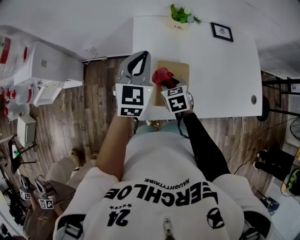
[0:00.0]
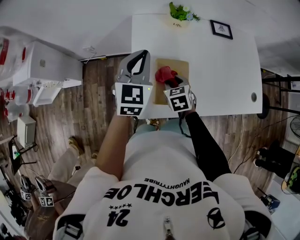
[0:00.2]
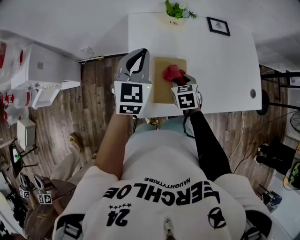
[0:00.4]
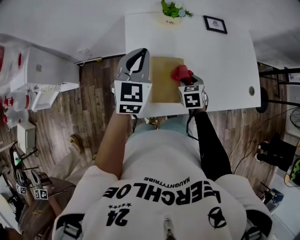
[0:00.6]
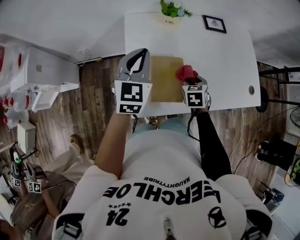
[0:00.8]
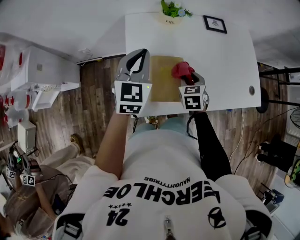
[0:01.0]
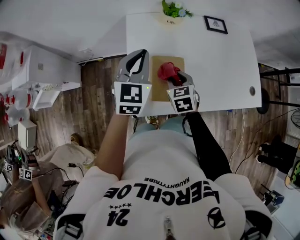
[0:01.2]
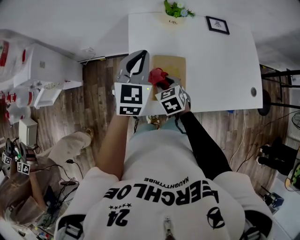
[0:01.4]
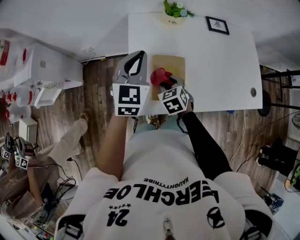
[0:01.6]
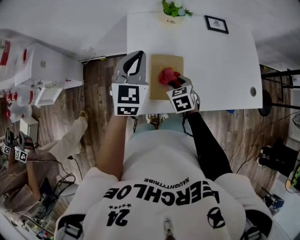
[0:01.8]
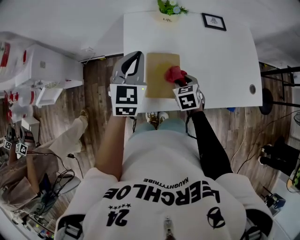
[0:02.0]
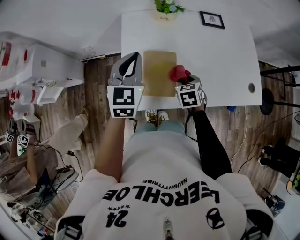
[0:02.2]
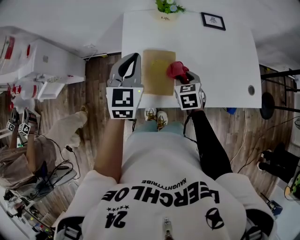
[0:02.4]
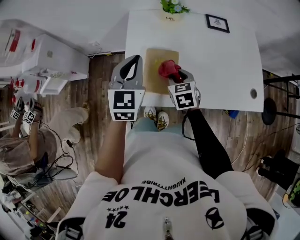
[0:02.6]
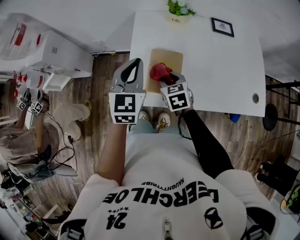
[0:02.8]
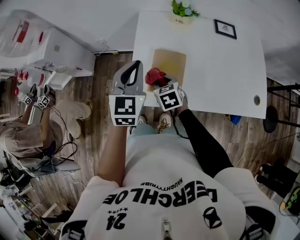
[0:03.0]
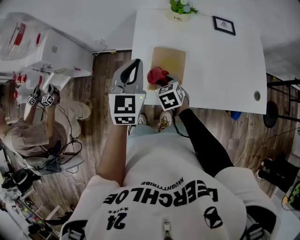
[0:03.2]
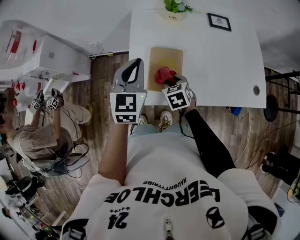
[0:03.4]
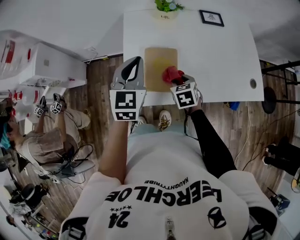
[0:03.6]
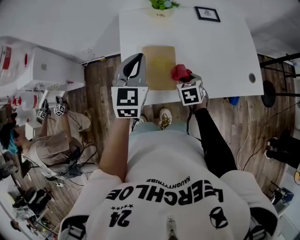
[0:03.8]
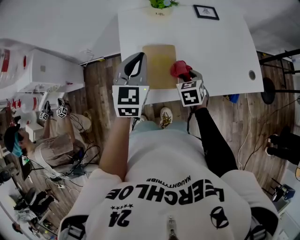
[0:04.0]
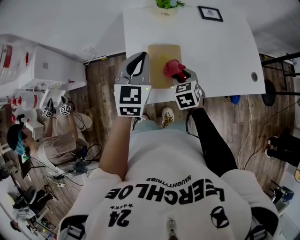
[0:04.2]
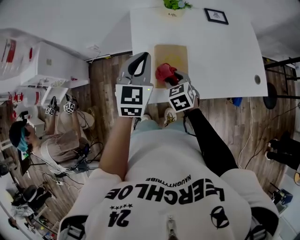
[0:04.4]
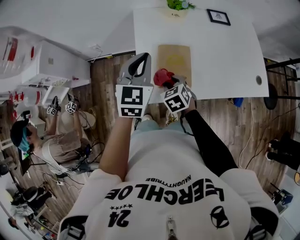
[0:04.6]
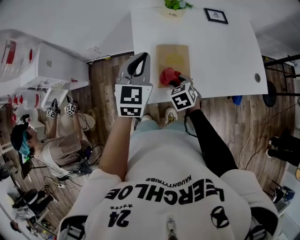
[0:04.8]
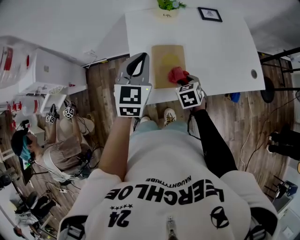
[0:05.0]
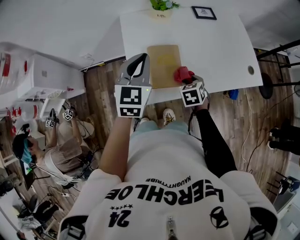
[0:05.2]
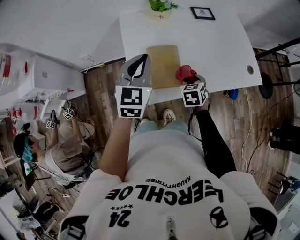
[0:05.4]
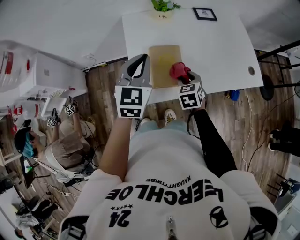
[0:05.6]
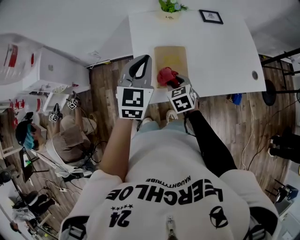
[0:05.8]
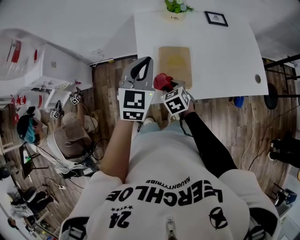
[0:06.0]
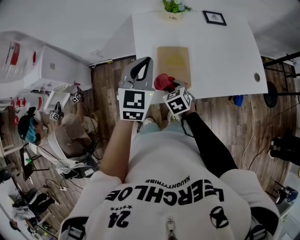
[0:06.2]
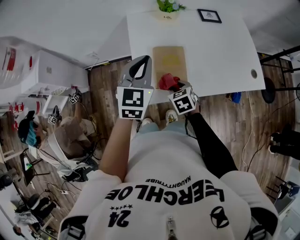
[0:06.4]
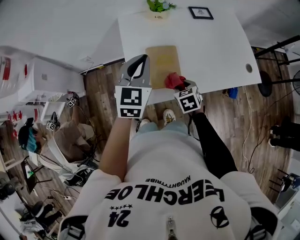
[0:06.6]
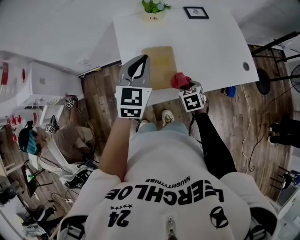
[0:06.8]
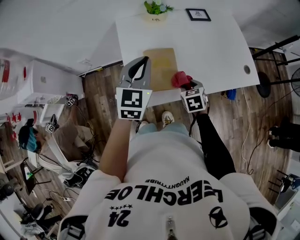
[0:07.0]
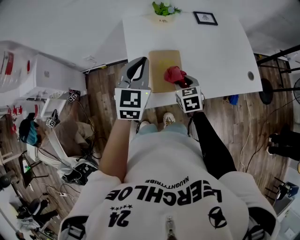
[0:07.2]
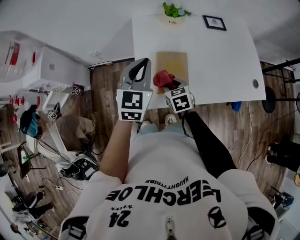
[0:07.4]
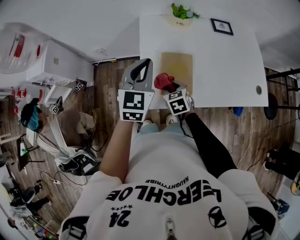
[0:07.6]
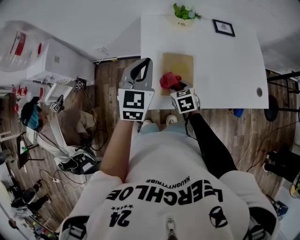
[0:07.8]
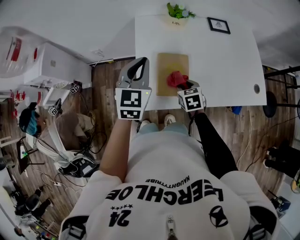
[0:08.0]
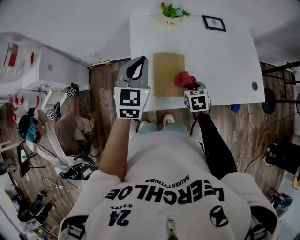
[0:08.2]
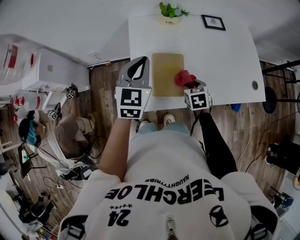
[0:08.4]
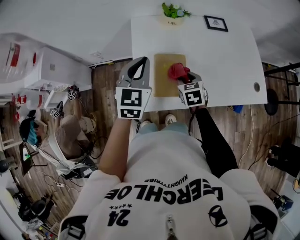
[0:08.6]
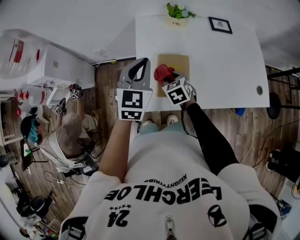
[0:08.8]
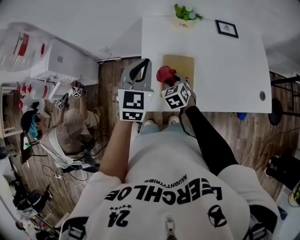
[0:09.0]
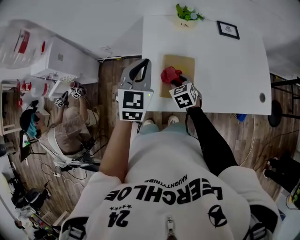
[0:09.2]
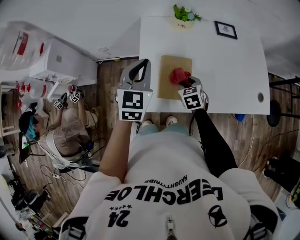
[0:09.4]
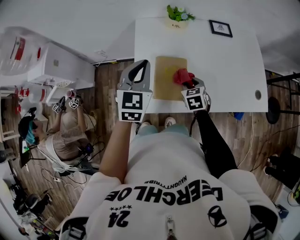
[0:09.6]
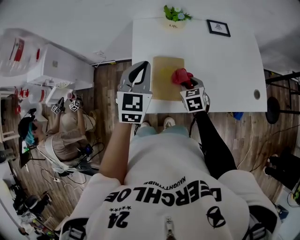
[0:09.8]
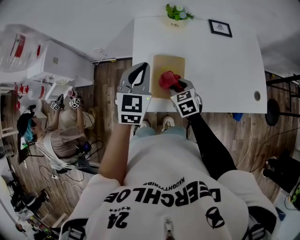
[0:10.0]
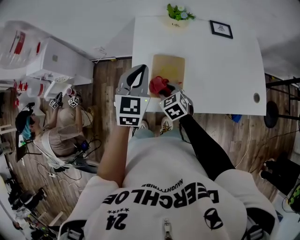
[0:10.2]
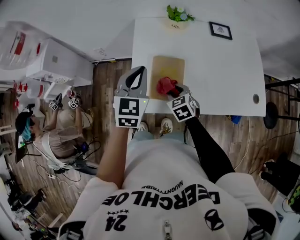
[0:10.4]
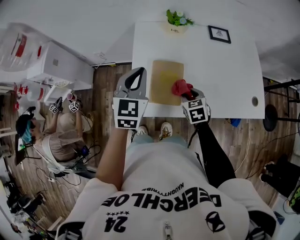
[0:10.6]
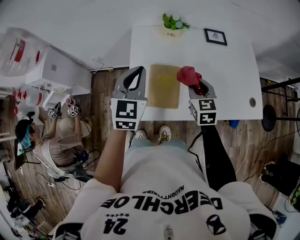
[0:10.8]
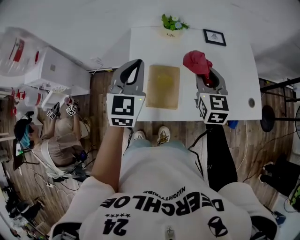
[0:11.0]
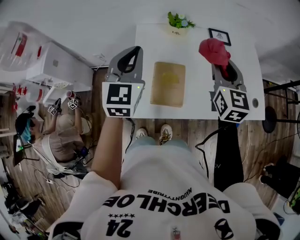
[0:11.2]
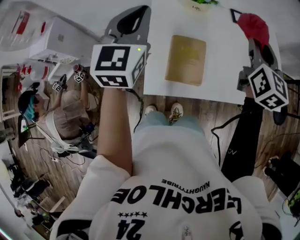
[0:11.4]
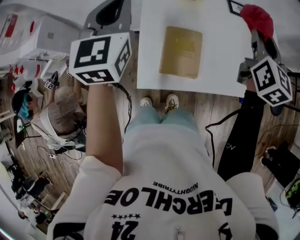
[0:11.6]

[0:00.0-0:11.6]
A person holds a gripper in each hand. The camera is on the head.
0:00.0 to 0:01.4: The right gripper moves approximately 15 cm to the right and comes back.
0:01.4 to 0:02.8: The left gripper shifts approximately 10 cm backward. Meanwhile the right gripper reaches roughly 15 cm to the right, then returns.
0:02.8 to 0:04.4: The right gripper moves left and right over about 15 cm, changing direction 2 times.
0:04.4 to 0:05.8: The right gripper travels to the right and back again, about 15 cm each way.
0:05.8 to 0:07.2: The right gripper swings left and right, approximately 15 cm each way, with 2 reversals.
0:07.2 to 0:08.8: The right gripper swings left and right, about 15 cm each way, with 2 reversals.
0:08.8 to 0:10.2: The right gripper shifts approximately 5 cm backward, and travels to the right and back again, approximately 10 cm each way.
0:10.2 to 0:11.6: The right gripper goes approximately 30 cm upward and to the right, and tilts its fingers roughly 40 degrees upward; the left gripper goes approximately 15 cm to the left and upward.

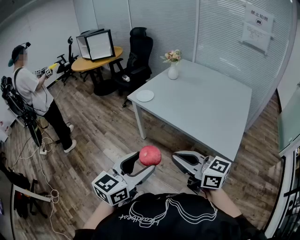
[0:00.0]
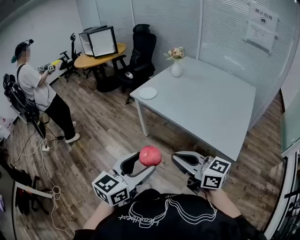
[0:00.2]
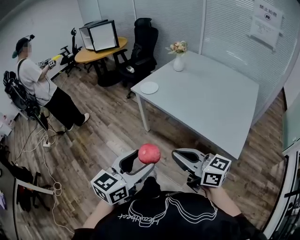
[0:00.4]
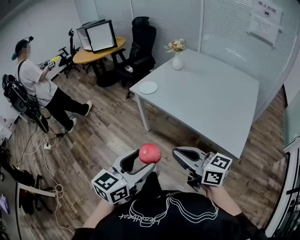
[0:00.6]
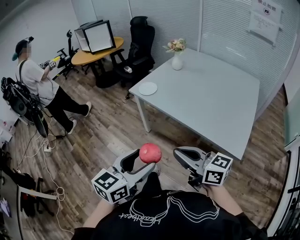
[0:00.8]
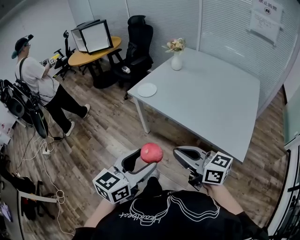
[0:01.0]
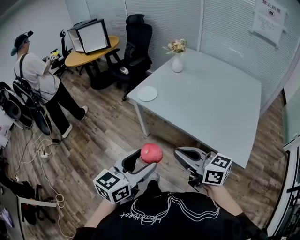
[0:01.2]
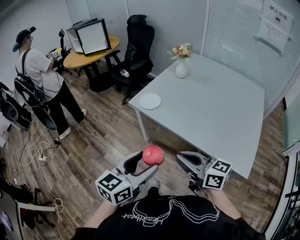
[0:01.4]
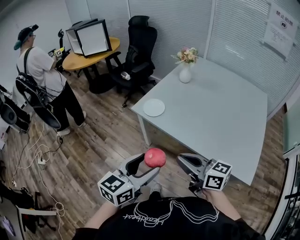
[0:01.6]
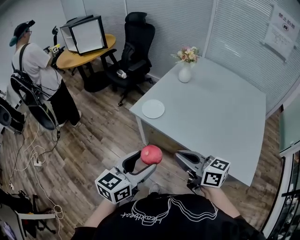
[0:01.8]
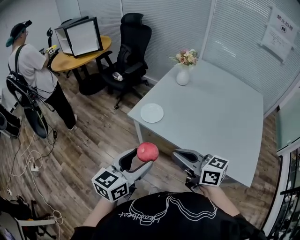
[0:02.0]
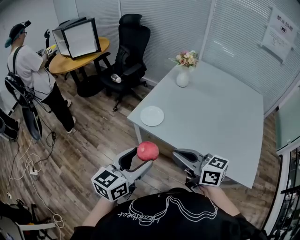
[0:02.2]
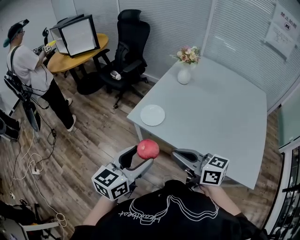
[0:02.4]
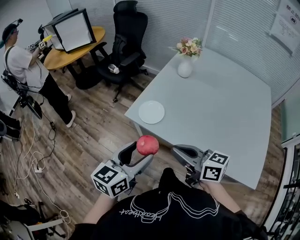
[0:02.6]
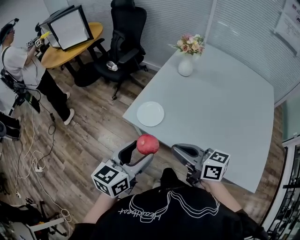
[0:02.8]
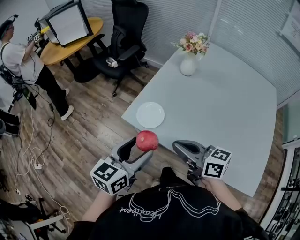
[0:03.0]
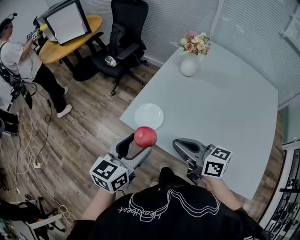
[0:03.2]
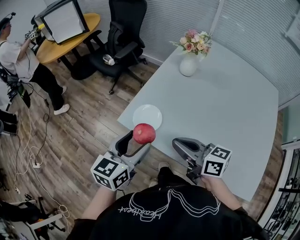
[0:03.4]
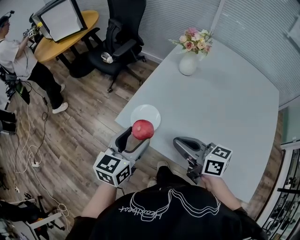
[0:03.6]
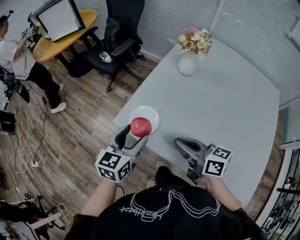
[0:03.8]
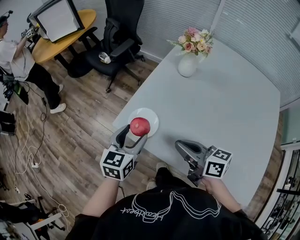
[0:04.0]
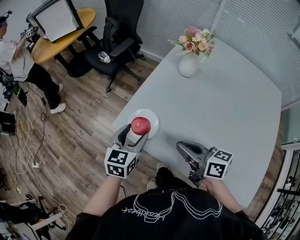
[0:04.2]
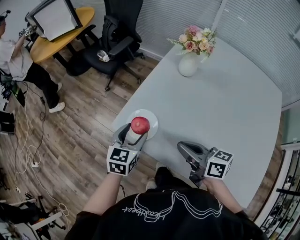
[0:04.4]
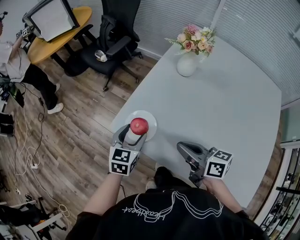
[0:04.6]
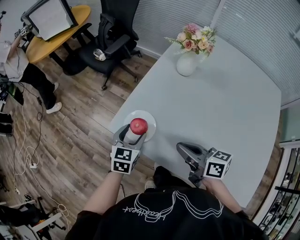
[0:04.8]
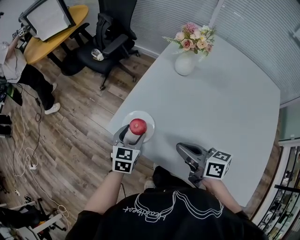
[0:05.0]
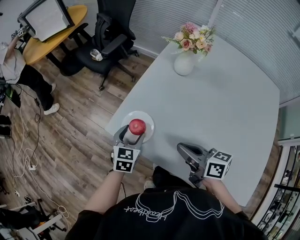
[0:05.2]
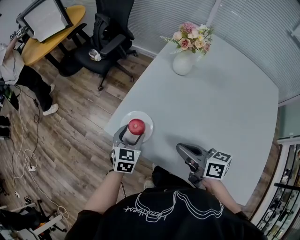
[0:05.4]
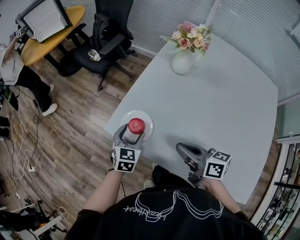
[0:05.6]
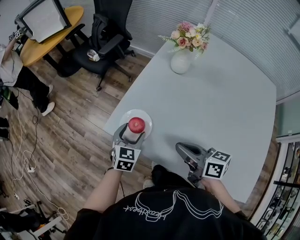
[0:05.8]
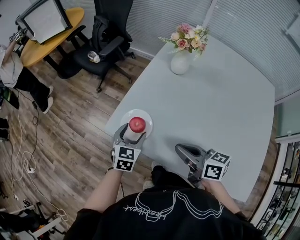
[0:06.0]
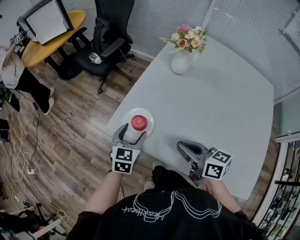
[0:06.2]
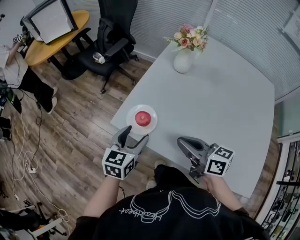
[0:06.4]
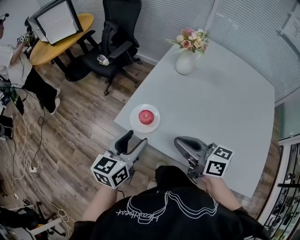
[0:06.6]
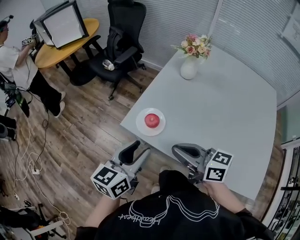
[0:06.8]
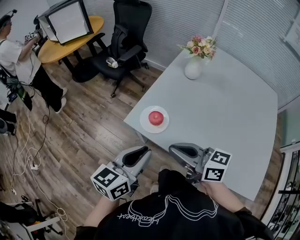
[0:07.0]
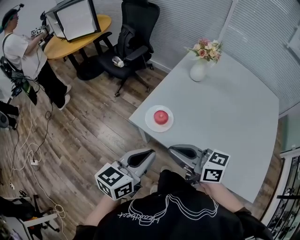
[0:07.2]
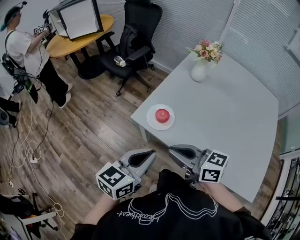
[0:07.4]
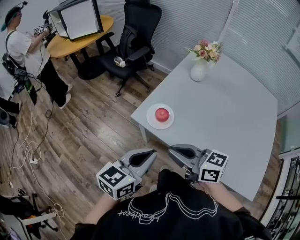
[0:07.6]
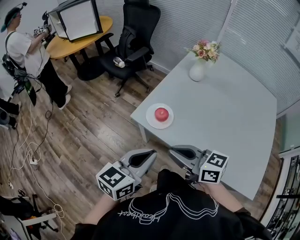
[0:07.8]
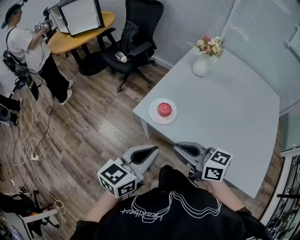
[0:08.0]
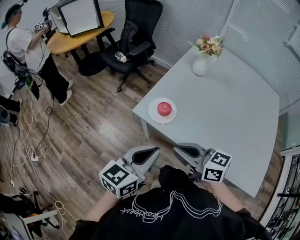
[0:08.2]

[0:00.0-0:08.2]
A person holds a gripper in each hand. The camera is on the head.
0:00.0 to 0:01.6: Both grippers travel together forward, about 25 cm.
0:01.6 to 0:03.2: The two grippers go approximately 30 cm forward.
0:03.2 to 0:05.0: The left gripper travels downward and forward by some 25 cm, and changes its angle by approximately 20 degrees, while the right gripper is displaced downward, to the right and forward by some 10 cm.
0:05.0 to 0:06.6: The left gripper goes some 15 cm upward and backward, and turns by some 30 degrees; the right gripper travels upward and to the left by about 10 cm.
0:06.6 to 0:08.2: The right gripper heads to the left and backward, covering roughly 10 cm. The left gripper travels backward by roughly 10 cm, and closes.

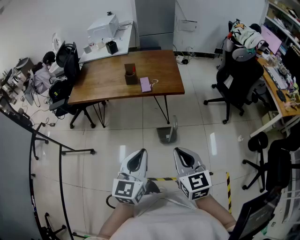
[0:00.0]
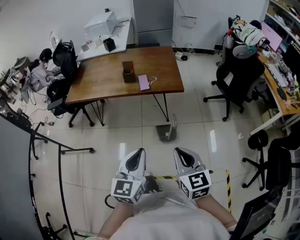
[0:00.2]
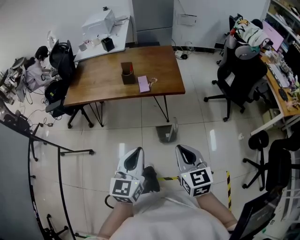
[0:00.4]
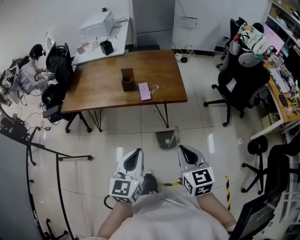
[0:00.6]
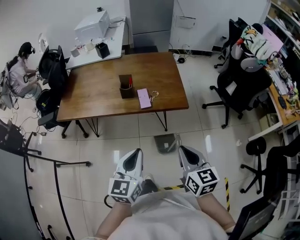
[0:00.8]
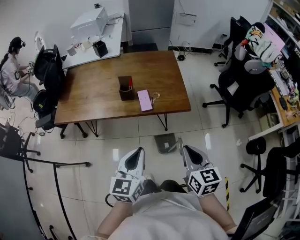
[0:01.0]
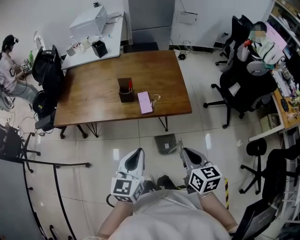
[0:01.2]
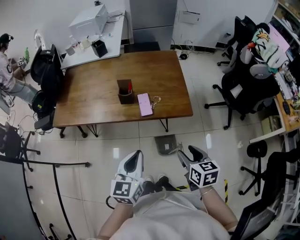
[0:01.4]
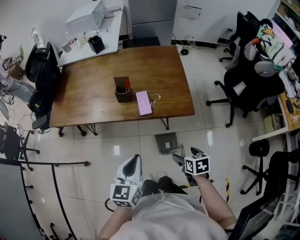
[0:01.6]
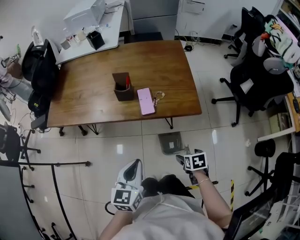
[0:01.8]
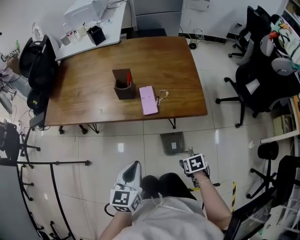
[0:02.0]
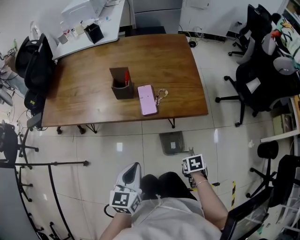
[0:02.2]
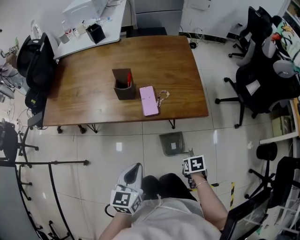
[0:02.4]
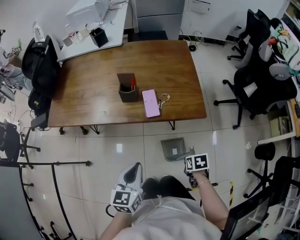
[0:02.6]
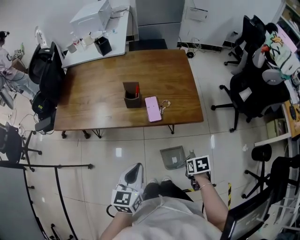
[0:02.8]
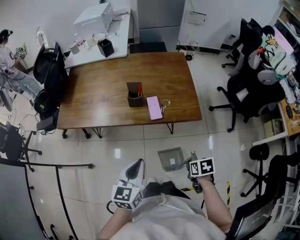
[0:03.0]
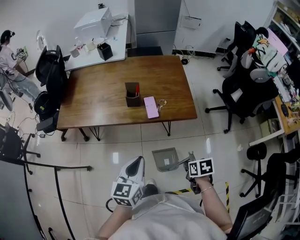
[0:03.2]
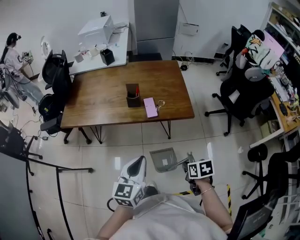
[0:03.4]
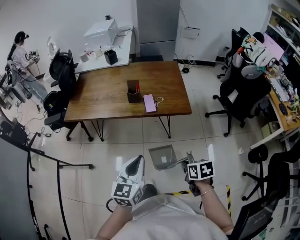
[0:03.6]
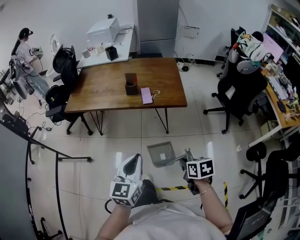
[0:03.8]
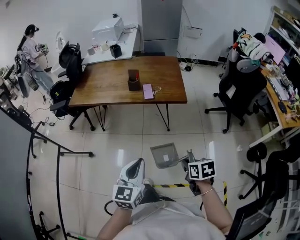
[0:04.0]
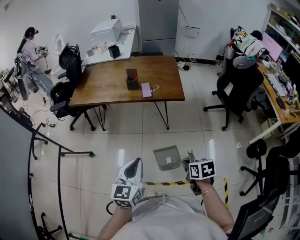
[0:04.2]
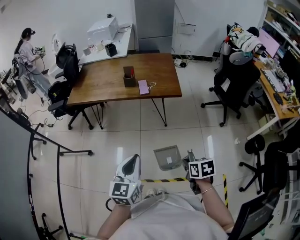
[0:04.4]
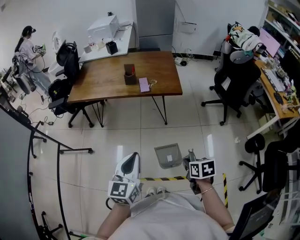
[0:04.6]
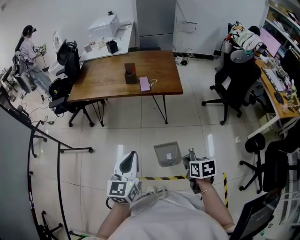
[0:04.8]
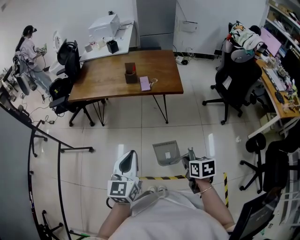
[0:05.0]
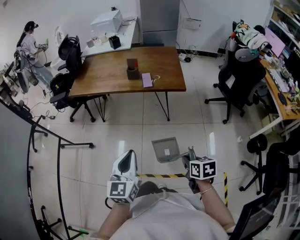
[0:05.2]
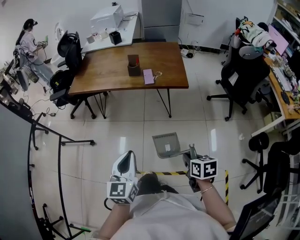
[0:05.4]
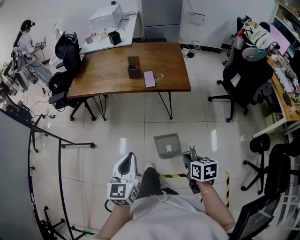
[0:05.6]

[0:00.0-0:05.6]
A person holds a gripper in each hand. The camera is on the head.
0:00.0 to 0:01.4: Both grippers move forward, roughly 25 cm. The right gripper rotates about 30 degrees.
0:01.4 to 0:02.8: The left gripper travels downward by roughly 5 cm. The right gripper goes about 20 cm downward, tips its fingers downward by some 30 degrees, and opens and closes again.
0:02.8 to 0:04.2: The left gripper moves backward, about 30 cm, while the right gripper travels backward and upward by some 30 cm.
0:04.2 to 0:05.6: The left gripper moves roughly 5 cm.
